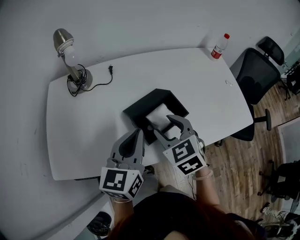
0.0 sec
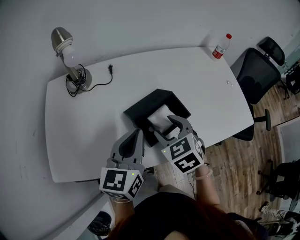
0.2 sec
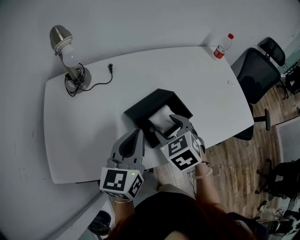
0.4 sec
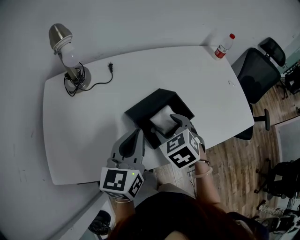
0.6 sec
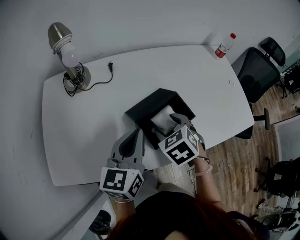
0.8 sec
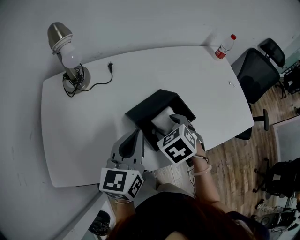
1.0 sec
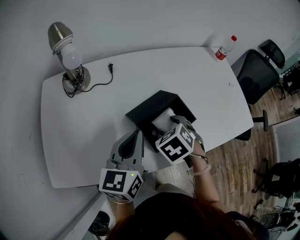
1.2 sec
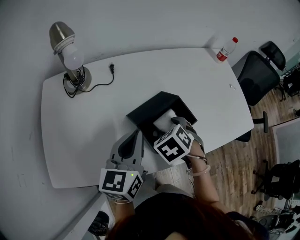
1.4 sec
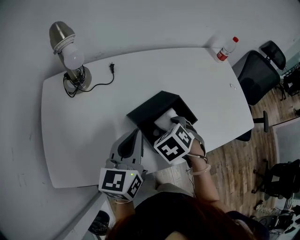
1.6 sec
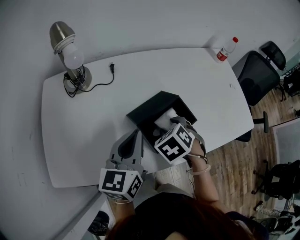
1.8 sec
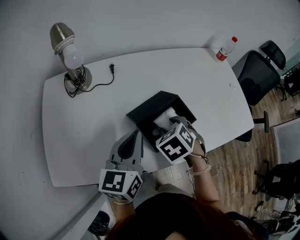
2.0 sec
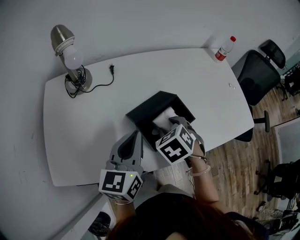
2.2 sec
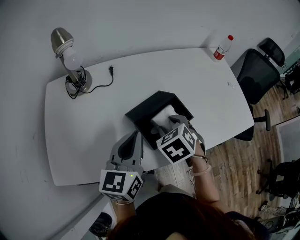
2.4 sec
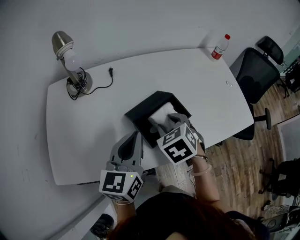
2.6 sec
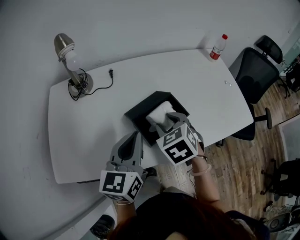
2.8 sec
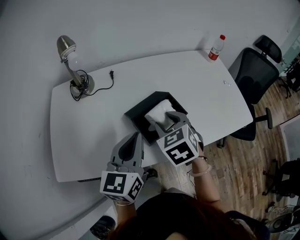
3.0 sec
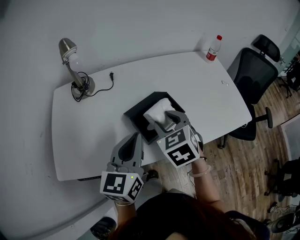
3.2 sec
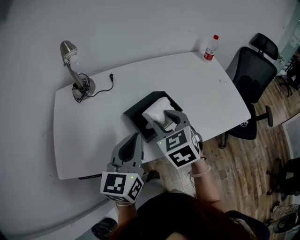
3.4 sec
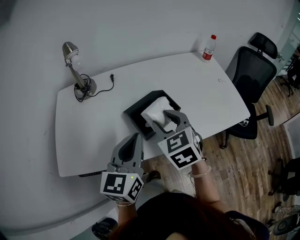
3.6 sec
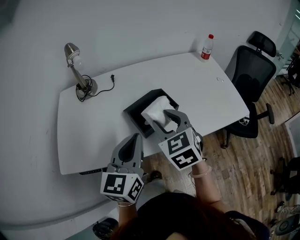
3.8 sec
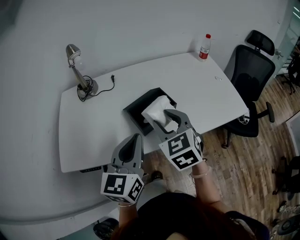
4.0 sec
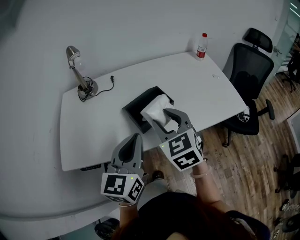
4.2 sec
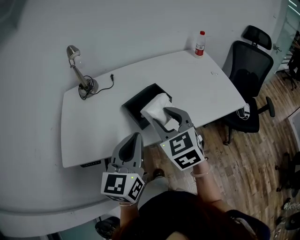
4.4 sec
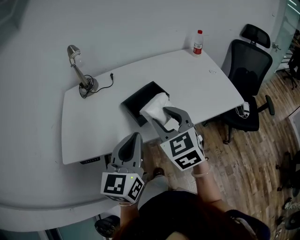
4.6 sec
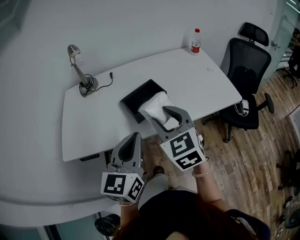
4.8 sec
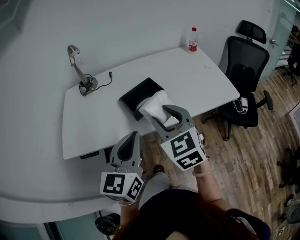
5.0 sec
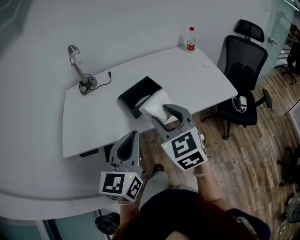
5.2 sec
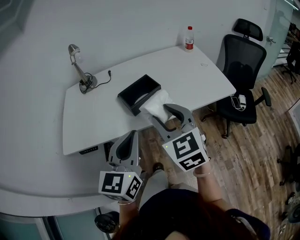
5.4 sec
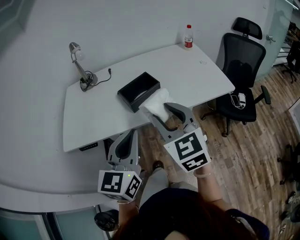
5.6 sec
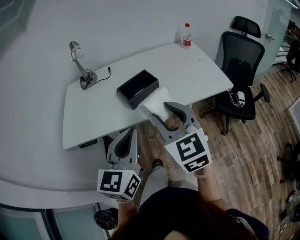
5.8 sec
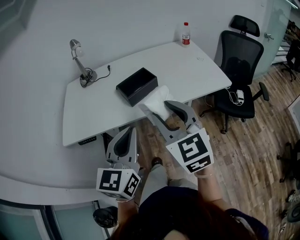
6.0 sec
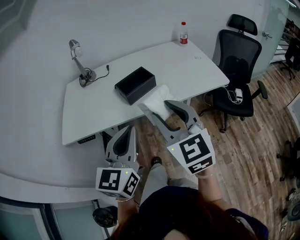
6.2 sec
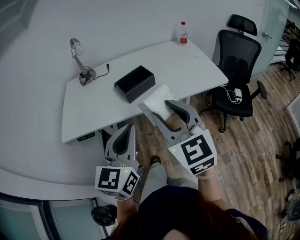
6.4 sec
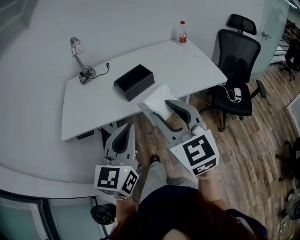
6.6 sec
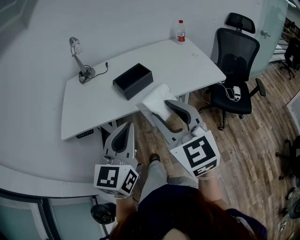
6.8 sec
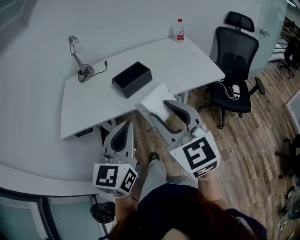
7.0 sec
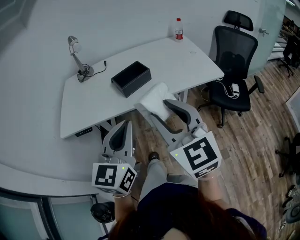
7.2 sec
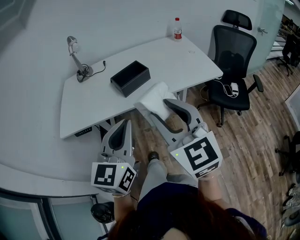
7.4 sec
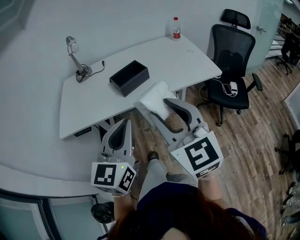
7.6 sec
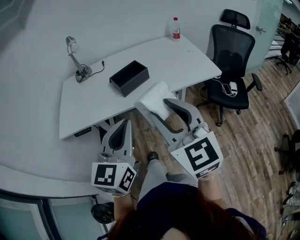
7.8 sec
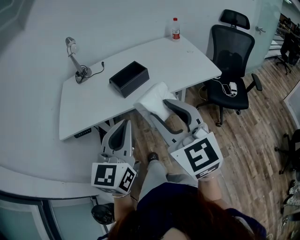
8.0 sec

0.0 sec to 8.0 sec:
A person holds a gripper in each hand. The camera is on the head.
0.0 sec to 1.6 sec: The right gripper shifts roughly 10 cm downward, and turns by approximately 30 degrees. Meanwhile the left gripper ends up approximately 5 cm from where it was.
1.6 sec to 3.2 sec: The left gripper moves backward, some 5 cm. Meanwhile the right gripper heads upward, covering about 10 cm, and turns by about 30 degrees.
3.2 sec to 4.8 sec: The left gripper travels backward and to the right by some 15 cm. The right gripper goes approximately 15 cm backward and upward, and changes its angle by roughly 20 degrees.
4.8 sec to 6.4 sec: Both grippers move backward, about 15 cm.
6.4 sec to 8.0 sec: The right gripper heads backward, covering about 5 cm.

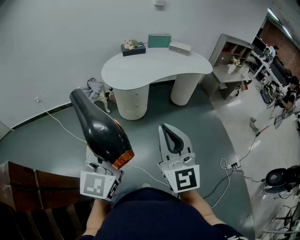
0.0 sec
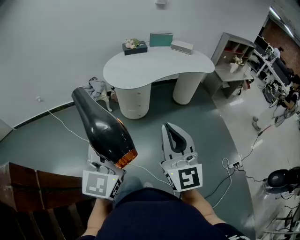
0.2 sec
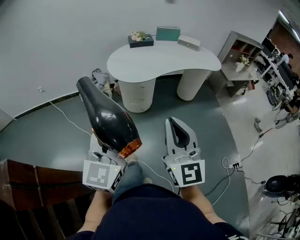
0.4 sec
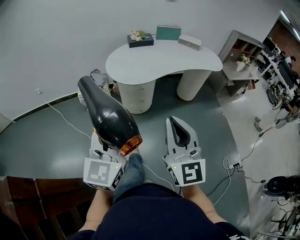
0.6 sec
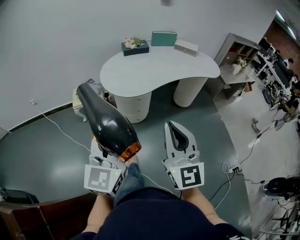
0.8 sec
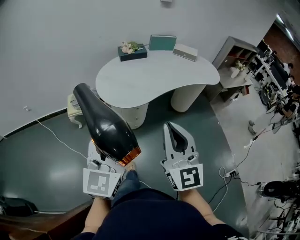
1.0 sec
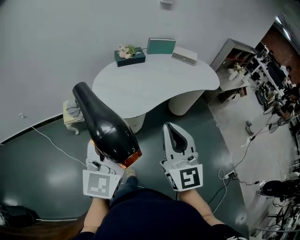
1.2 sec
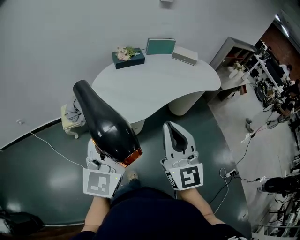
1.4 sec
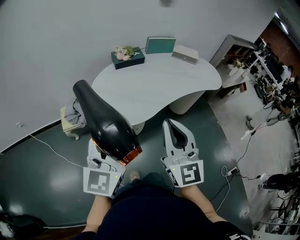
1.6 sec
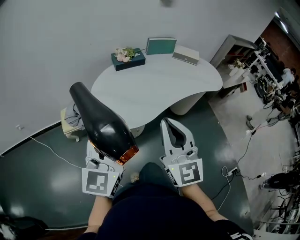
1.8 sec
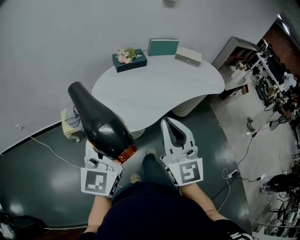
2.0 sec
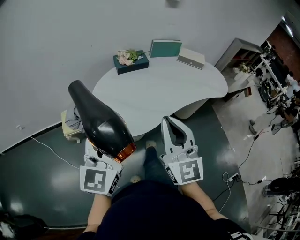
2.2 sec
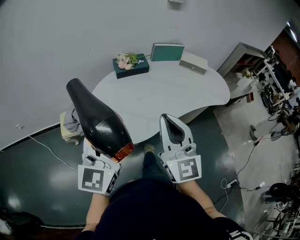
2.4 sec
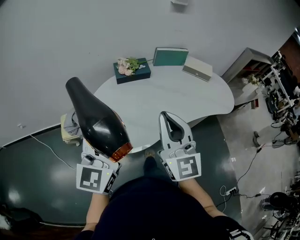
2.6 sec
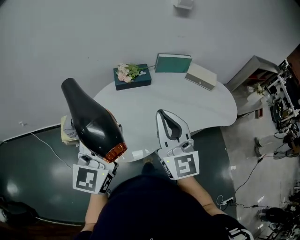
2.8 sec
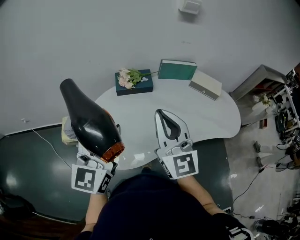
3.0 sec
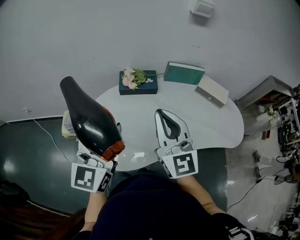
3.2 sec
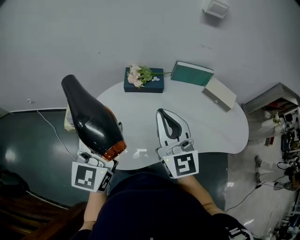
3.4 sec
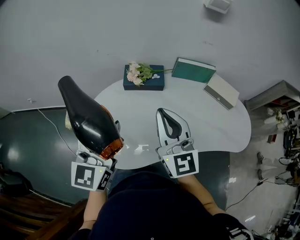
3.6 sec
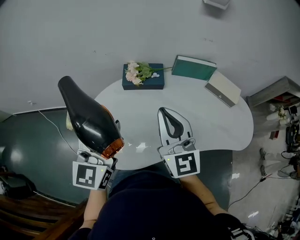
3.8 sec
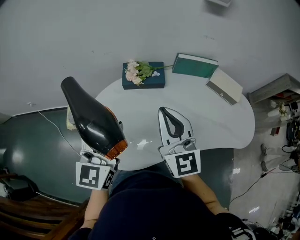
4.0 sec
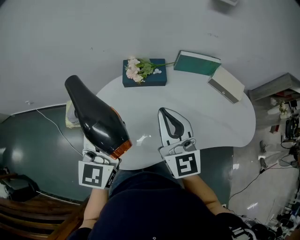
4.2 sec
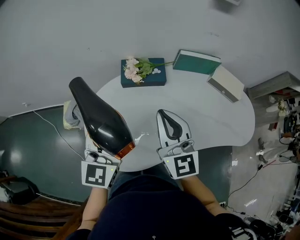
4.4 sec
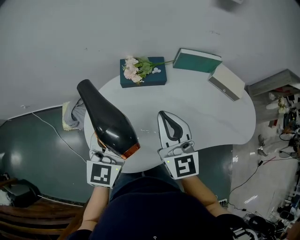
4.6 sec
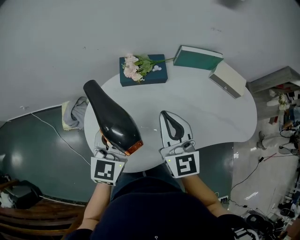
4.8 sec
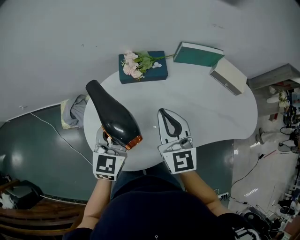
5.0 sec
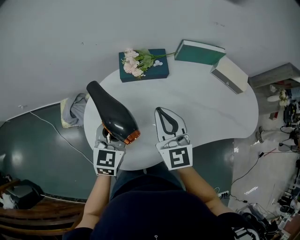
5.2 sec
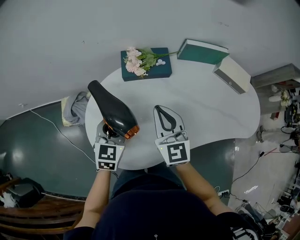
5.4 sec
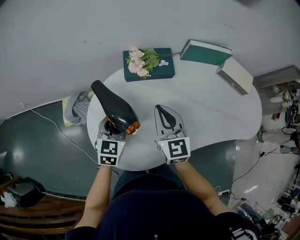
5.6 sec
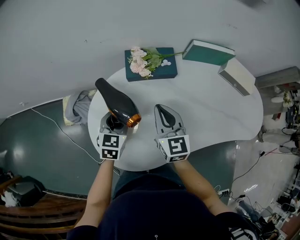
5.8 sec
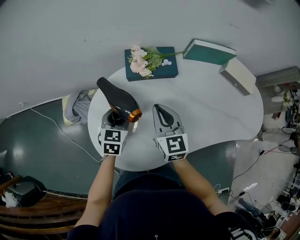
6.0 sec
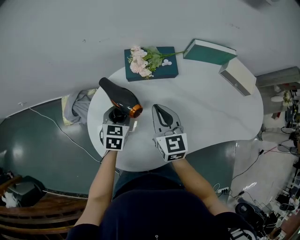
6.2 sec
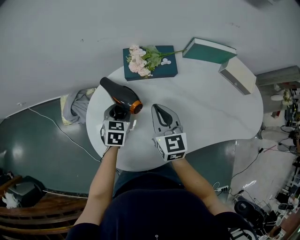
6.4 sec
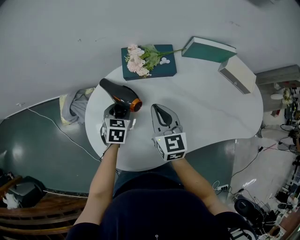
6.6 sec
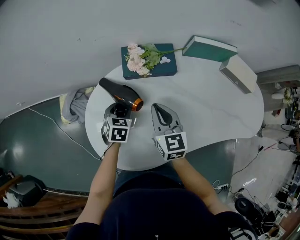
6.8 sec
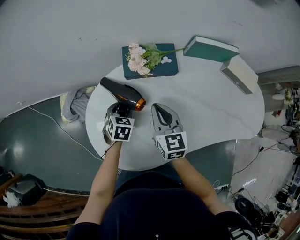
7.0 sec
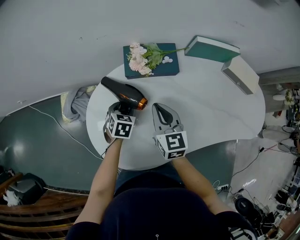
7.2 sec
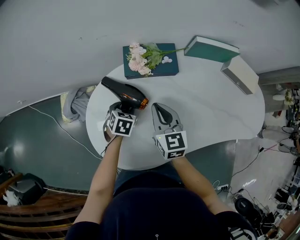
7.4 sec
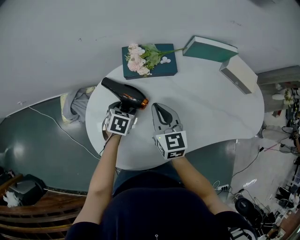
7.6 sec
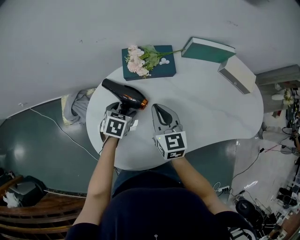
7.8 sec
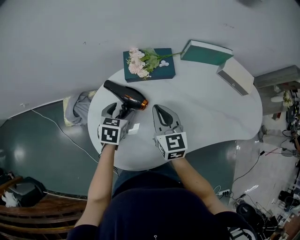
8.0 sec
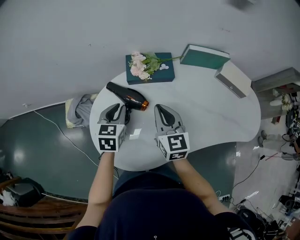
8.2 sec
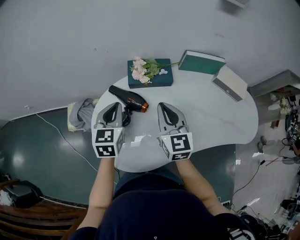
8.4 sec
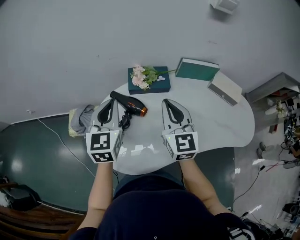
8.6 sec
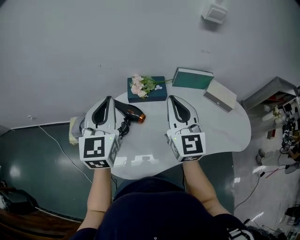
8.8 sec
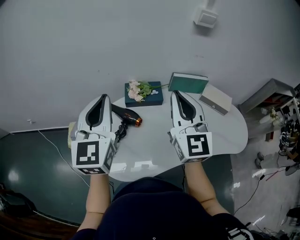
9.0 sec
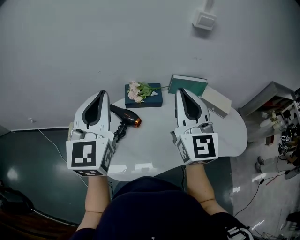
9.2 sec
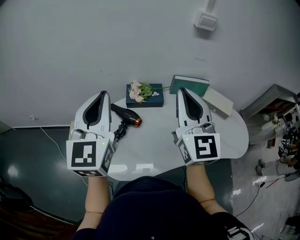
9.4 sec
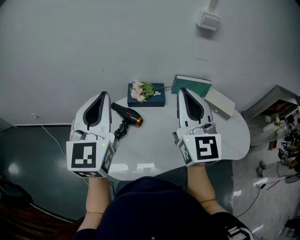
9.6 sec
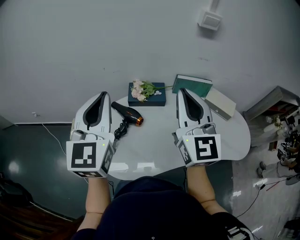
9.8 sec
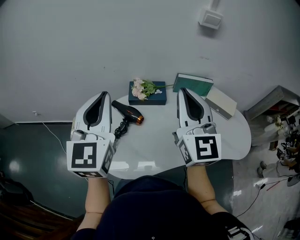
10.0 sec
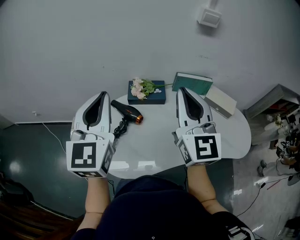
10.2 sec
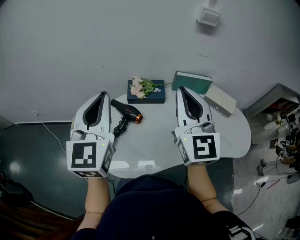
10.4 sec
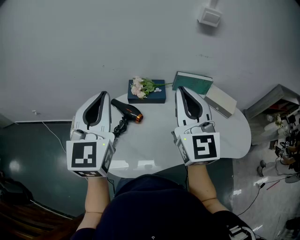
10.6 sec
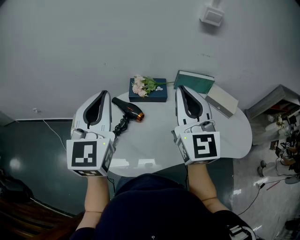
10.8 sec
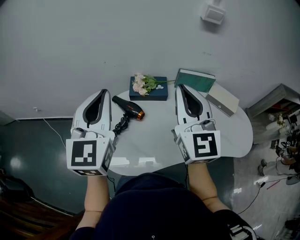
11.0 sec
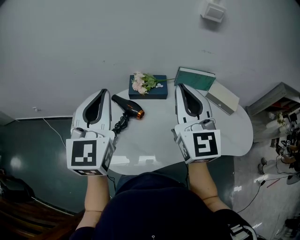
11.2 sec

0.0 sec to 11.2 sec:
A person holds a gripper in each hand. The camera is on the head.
0.0 sec to 1.6 sec: Both grippers travel together forward, some 40 cm.
1.6 sec to 3.2 sec: The grippers both shift forward by about 35 cm. The left gripper turns by some 20 degrees, while the right gripper rotates approximately 20 degrees.
3.2 sec to 4.8 sec: Both grippers move downward and forward, roughly 15 cm. The left gripper swivels approximately 20 degrees.
4.8 sec to 6.4 sec: The left gripper shifts approximately 20 cm downward, and rotates about 30 degrees, while the right gripper heads downward, covering about 15 cm, and swivels approximately 20 degrees.
6.4 sec to 8.0 sec: The grippers make only small movements.
8.0 sec to 9.6 sec: Both grippers move upward, about 35 cm. The left gripper tips its fingers upward by approximately 50 degrees, and closes up. The right gripper angles its fingers upward, by approximately 30 degrees.
9.6 sec to 11.2 sec: The grippers make only small movements.

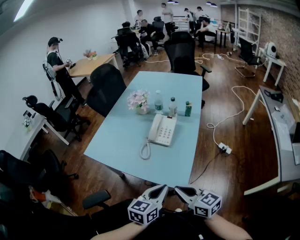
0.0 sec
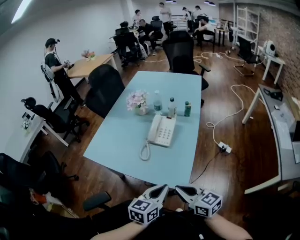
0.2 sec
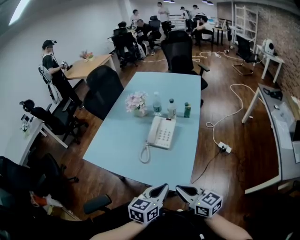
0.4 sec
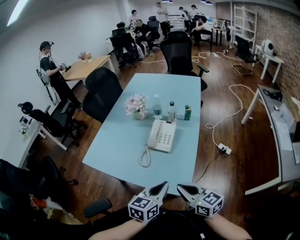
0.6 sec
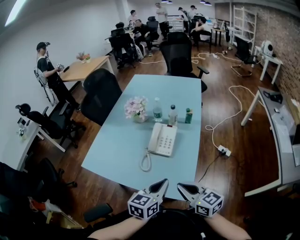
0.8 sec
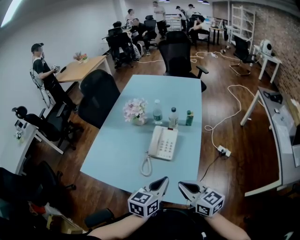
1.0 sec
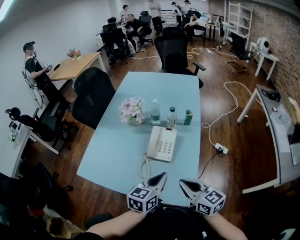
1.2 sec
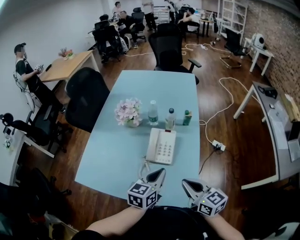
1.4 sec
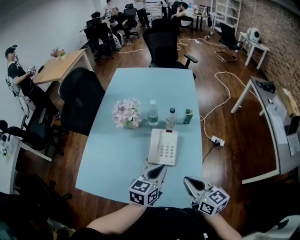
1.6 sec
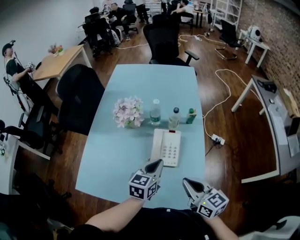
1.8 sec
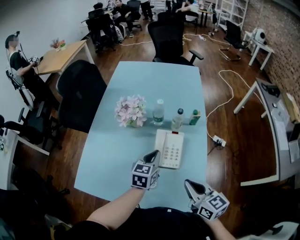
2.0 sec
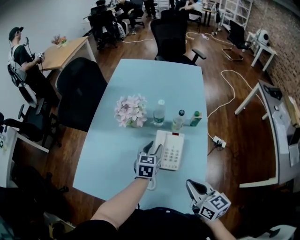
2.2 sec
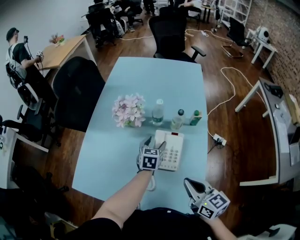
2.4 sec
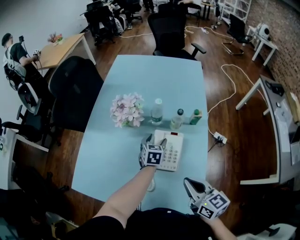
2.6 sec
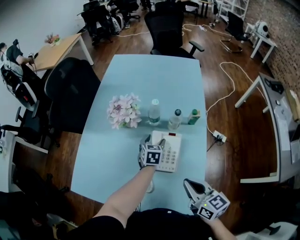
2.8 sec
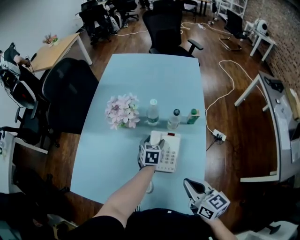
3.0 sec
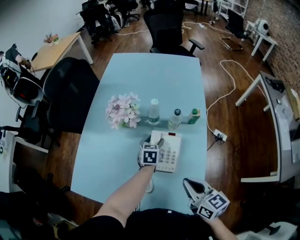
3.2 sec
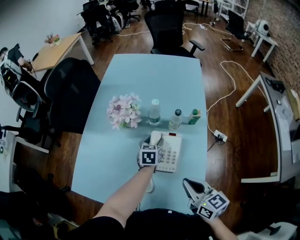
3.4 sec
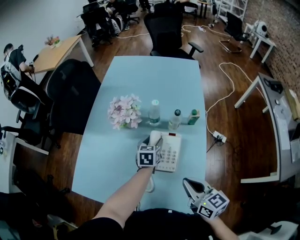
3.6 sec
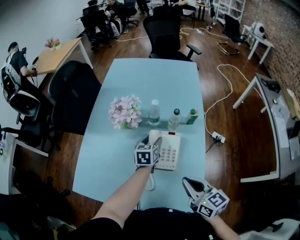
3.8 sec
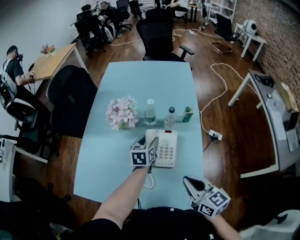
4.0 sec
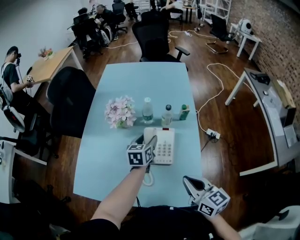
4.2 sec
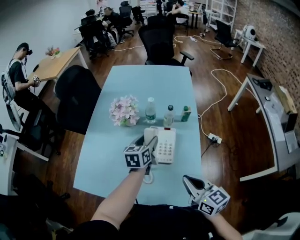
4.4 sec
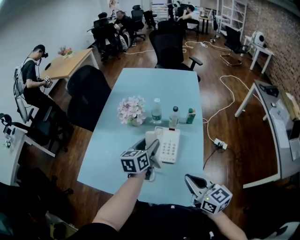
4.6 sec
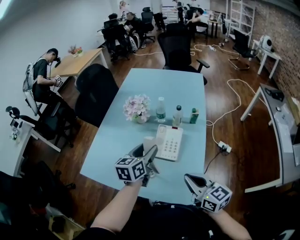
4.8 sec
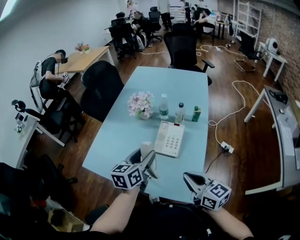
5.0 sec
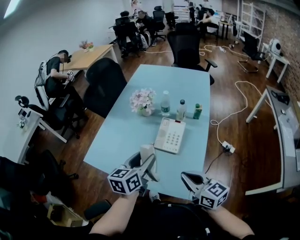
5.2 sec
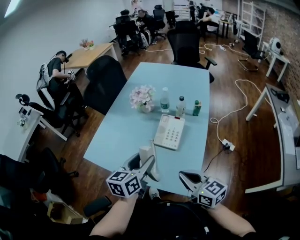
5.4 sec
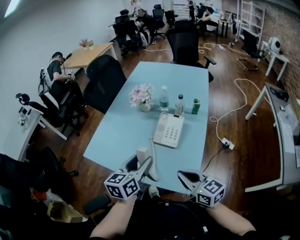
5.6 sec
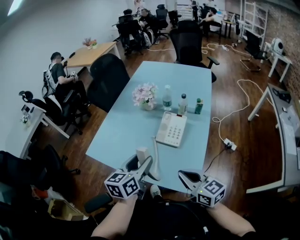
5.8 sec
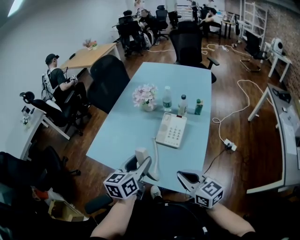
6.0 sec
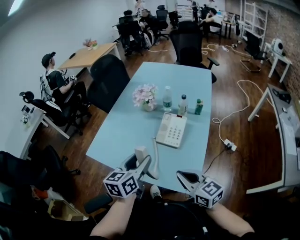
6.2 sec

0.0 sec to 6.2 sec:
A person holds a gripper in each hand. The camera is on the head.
0.0 sec to 1.6 sec: Both grippers travel together forward, some 25 cm. The right gripper rotates approximately 20 degrees.
1.6 sec to 3.2 sec: The right gripper is displaced forward by some 5 cm, while the left gripper moves forward and downward, about 30 cm, swivels about 30 degrees, and opens up.
3.2 sec to 4.6 sec: The left gripper travels upward and backward by approximately 20 cm, and turns by approximately 20 degrees. The right gripper shifts approximately 10 cm backward and upward.
4.6 sec to 6.2 sec: The right gripper heads backward, covering about 10 cm; the left gripper travels backward and to the left by about 20 cm.
